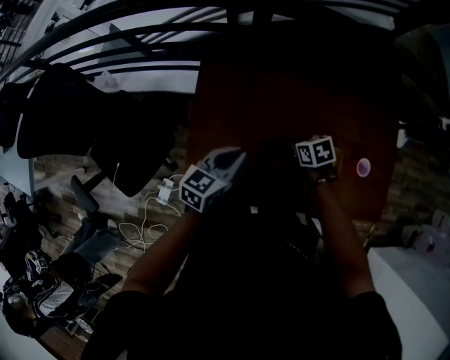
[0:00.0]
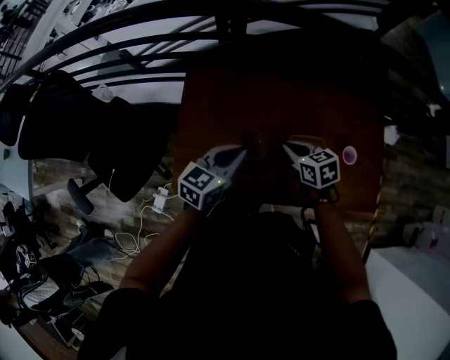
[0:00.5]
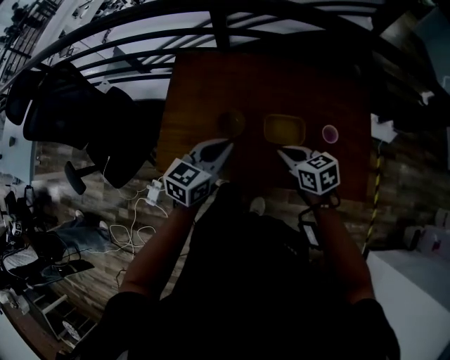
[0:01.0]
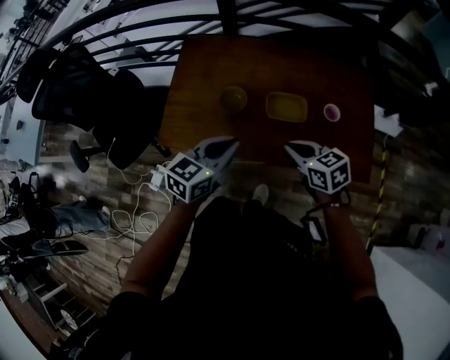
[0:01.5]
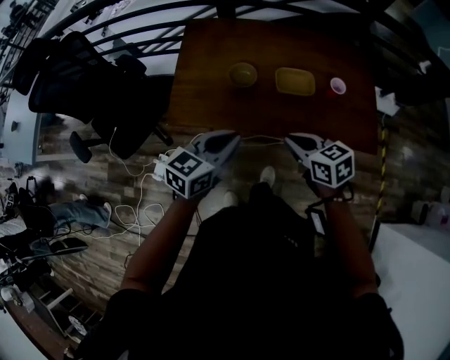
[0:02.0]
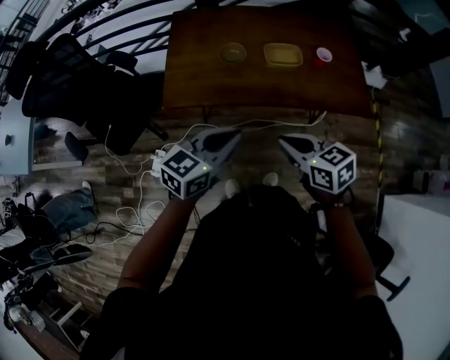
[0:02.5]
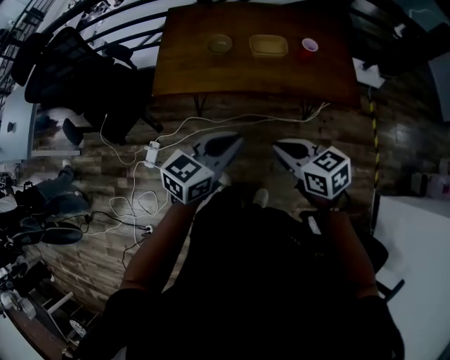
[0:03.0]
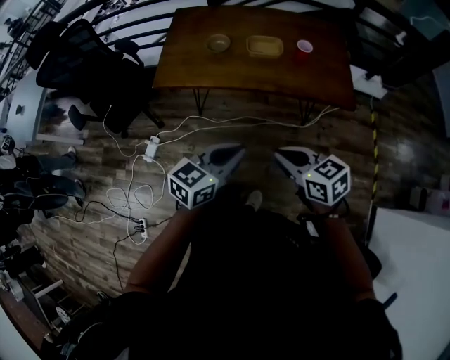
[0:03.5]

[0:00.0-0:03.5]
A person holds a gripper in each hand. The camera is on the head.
0:00.0 to 0:02.0: The right gripper travels backward and upward by some 40 cm, and turns by approximately 30 degrees, while the left gripper travels backward by roughly 30 cm.
0:02.0 to 0:03.5: The right gripper shifts some 25 cm backward, while the left gripper is displaced backward and to the right by roughly 30 cm.

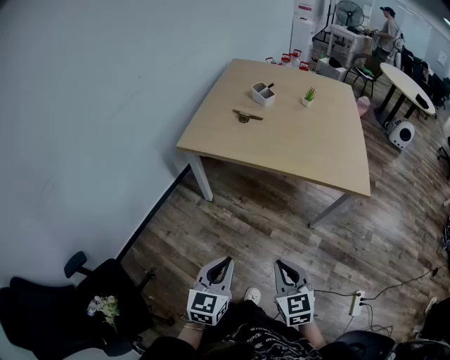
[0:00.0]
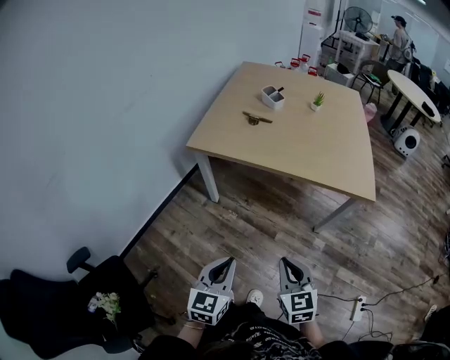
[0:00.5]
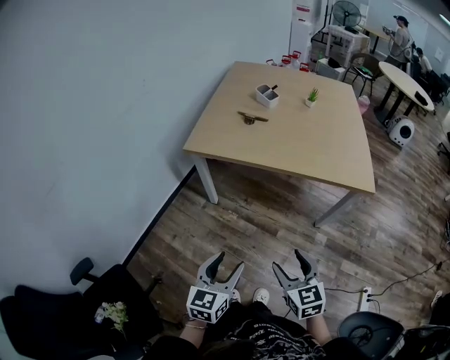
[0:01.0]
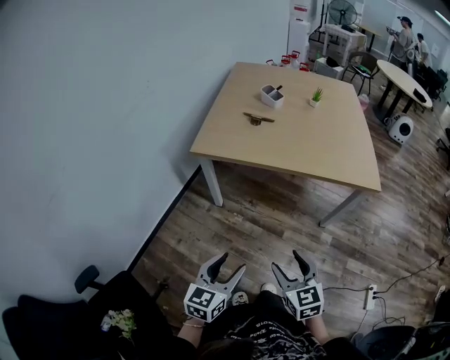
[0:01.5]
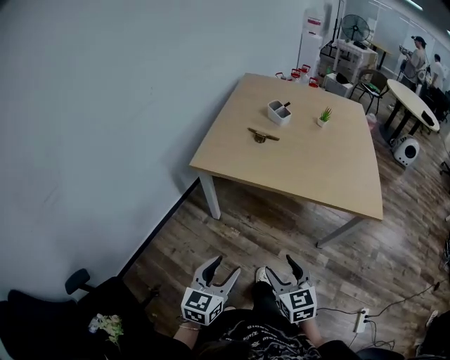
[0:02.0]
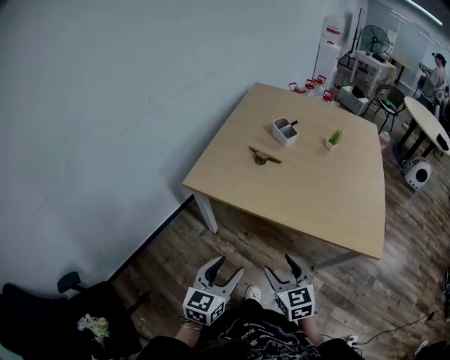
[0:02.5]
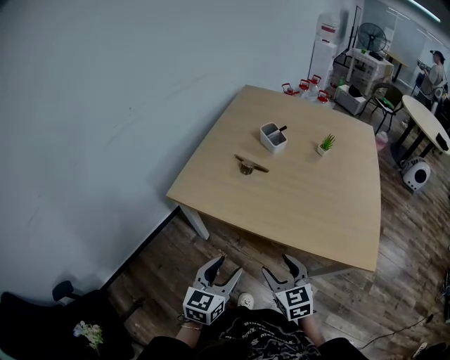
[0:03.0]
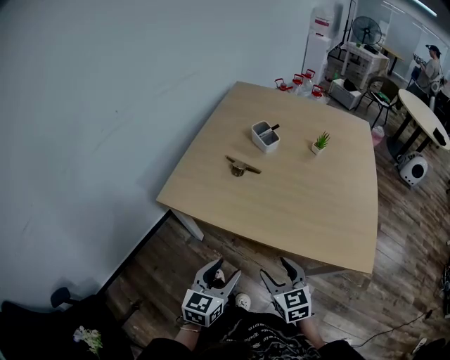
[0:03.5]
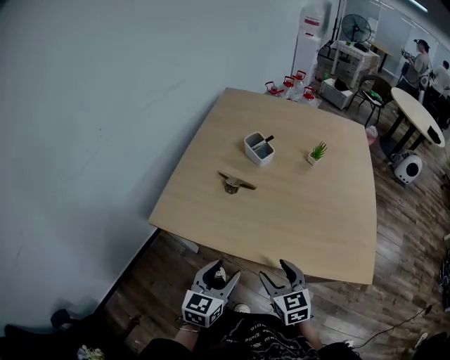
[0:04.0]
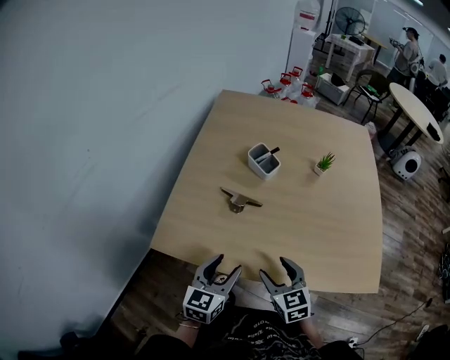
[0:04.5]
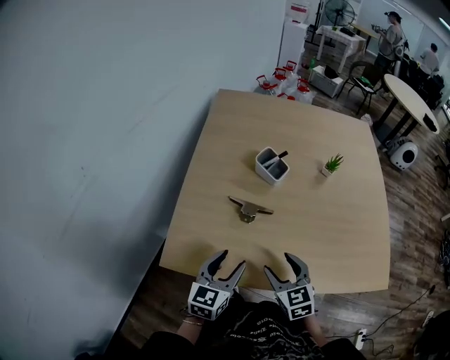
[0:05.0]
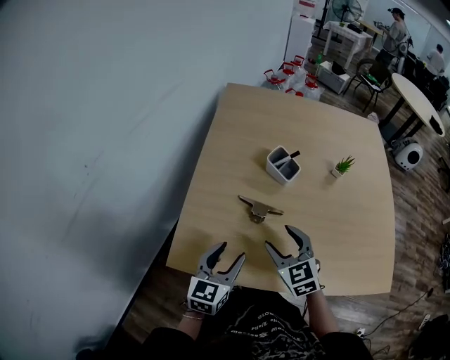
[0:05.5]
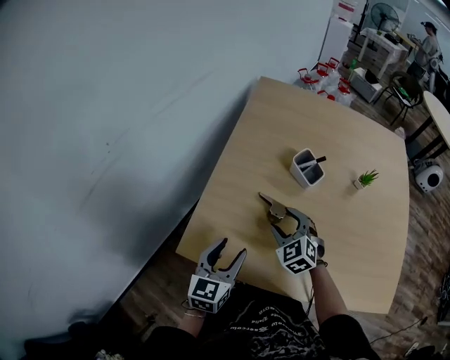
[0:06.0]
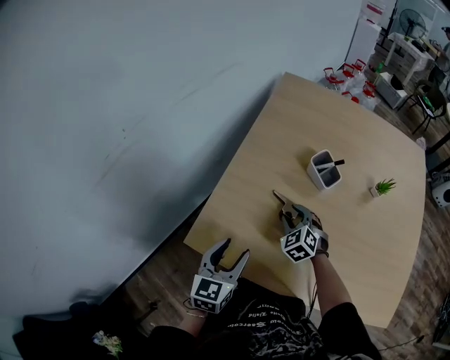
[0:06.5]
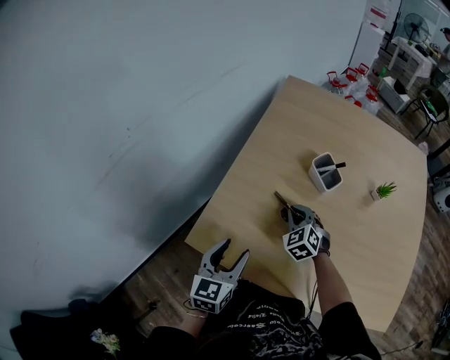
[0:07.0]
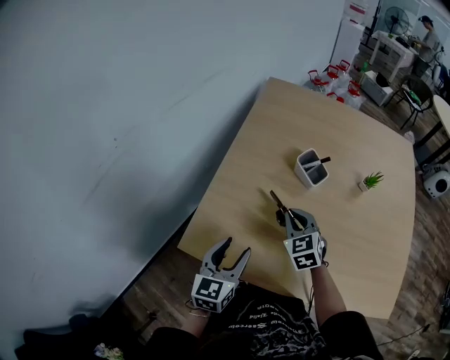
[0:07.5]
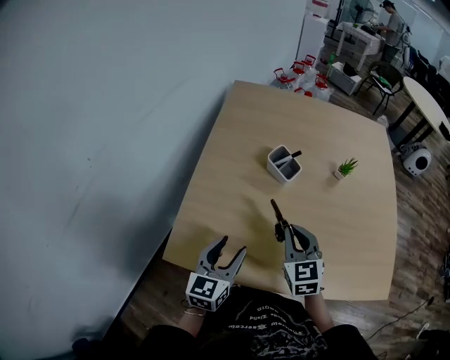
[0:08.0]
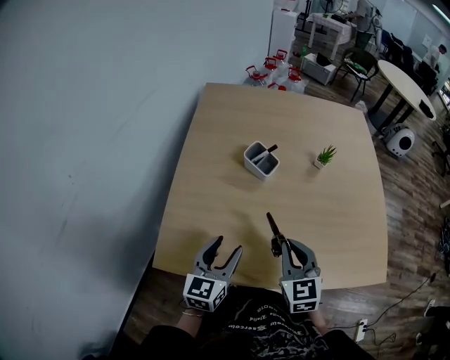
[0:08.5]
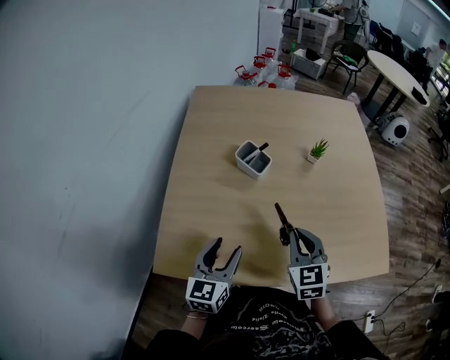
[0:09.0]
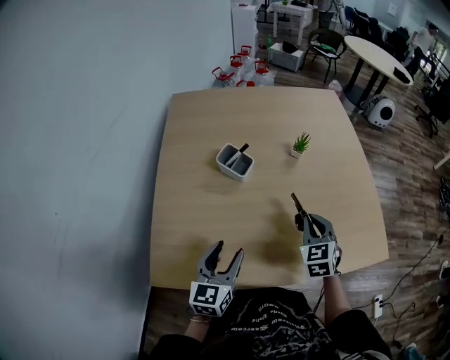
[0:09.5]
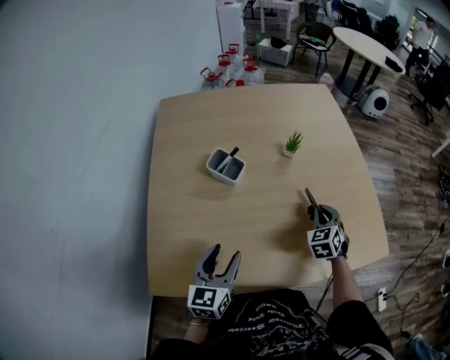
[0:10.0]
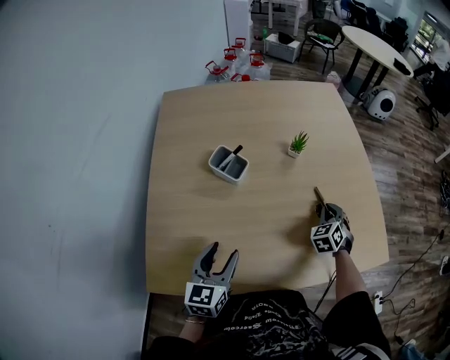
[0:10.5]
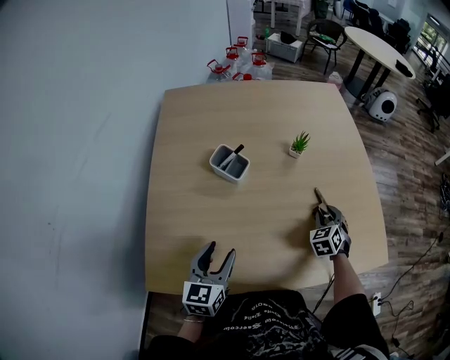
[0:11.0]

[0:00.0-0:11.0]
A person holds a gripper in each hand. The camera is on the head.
0:00.0 to 0:02.0: The right gripper goes roughly 15 cm forward and to the left, and opens. The left gripper heads to the left and forward, covering about 10 cm, and opens up.
0:02.0 to 0:03.5: The grippers both shift forward and to the right by roughly 25 cm.
0:03.5 to 0:05.5: The grippers both shift forward and to the left by some 35 cm.
0:05.5 to 0:07.5: The right gripper goes about 10 cm forward, and closes up.
0:07.5 to 0:09.0: The left gripper is displaced to the right by roughly 10 cm. Meanwhile the right gripper is displaced to the right and backward by approximately 20 cm, and turns by roughly 30 degrees.
0:09.0 to 0:11.0: The left gripper goes about 5 cm forward; the right gripper is displaced to the right, forward and downward by approximately 25 cm, turns by approximately 30 degrees, and opens its fingers.

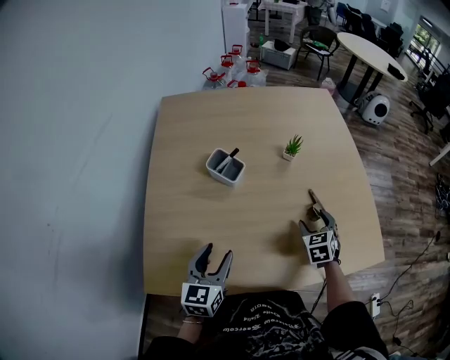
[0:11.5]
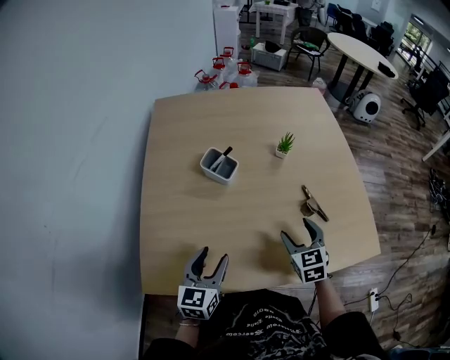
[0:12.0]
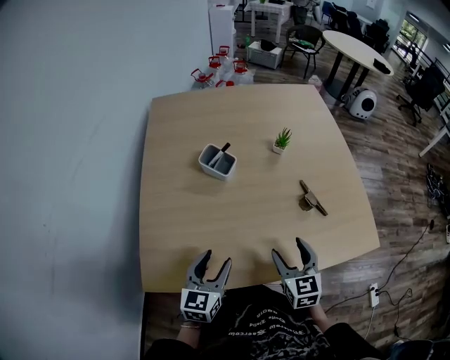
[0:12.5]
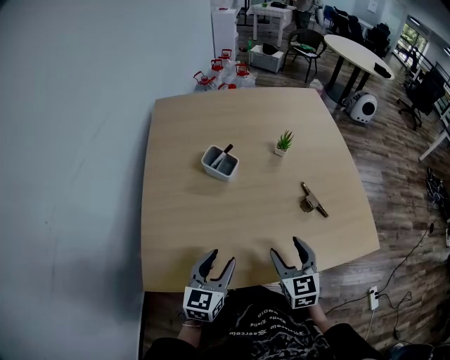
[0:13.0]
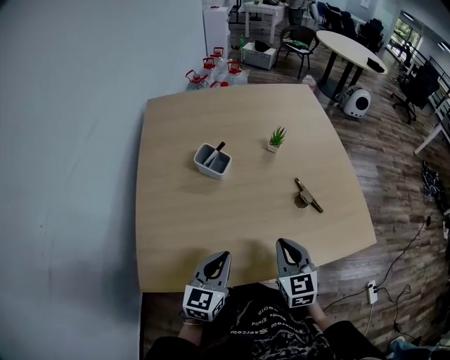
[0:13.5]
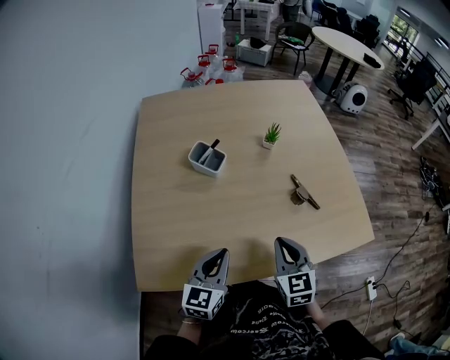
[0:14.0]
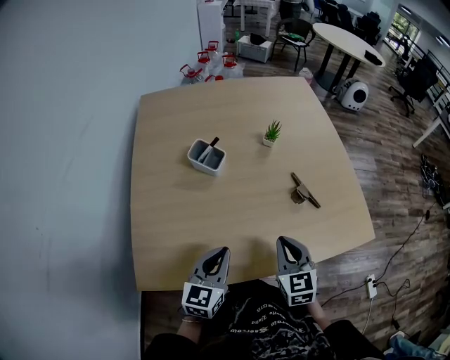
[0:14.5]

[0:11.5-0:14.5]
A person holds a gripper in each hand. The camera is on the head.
0:11.5 to 0:13.0: The right gripper heads backward, to the left and upward, covering about 20 cm, and changes its angle by about 20 degrees.
0:13.0 to 0:14.5: The right gripper closes. Meanwhile the left gripper closes up.

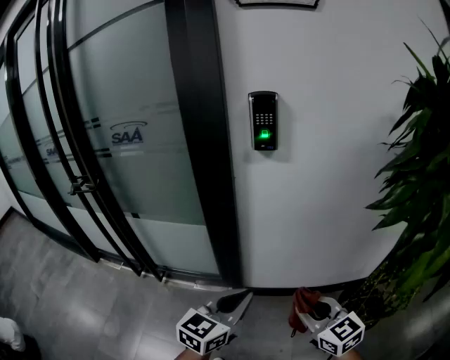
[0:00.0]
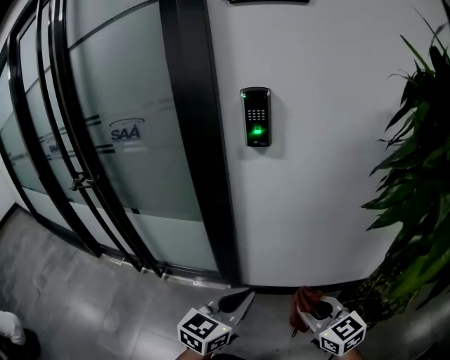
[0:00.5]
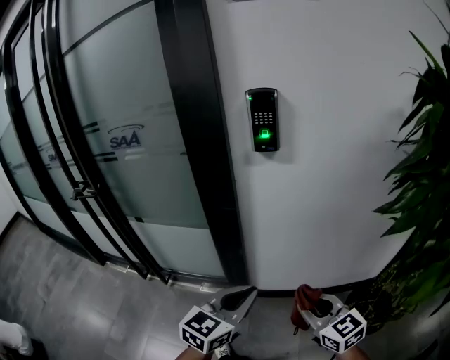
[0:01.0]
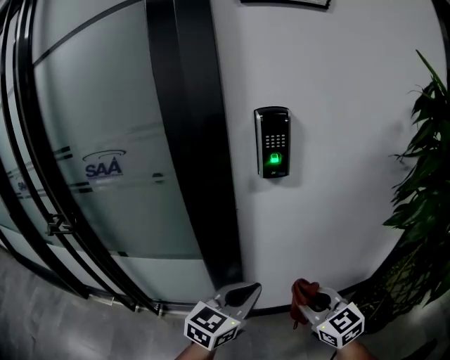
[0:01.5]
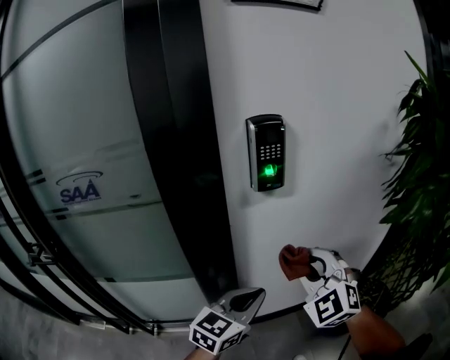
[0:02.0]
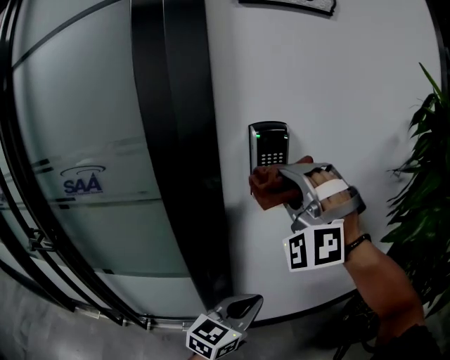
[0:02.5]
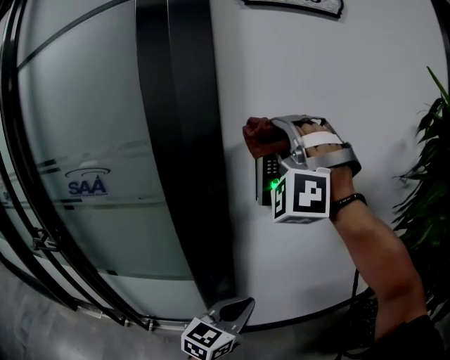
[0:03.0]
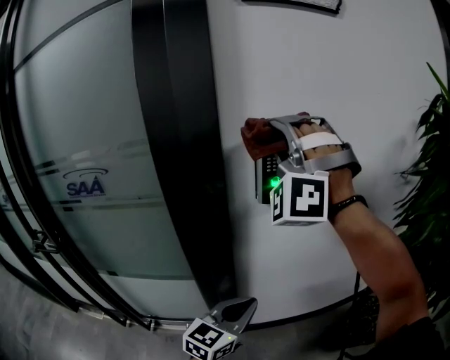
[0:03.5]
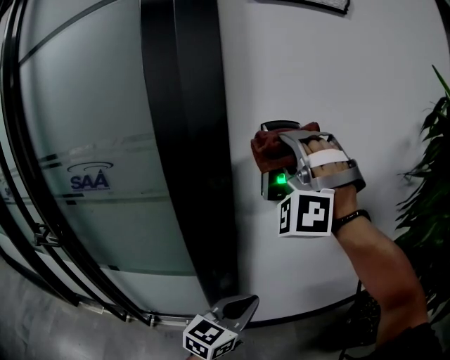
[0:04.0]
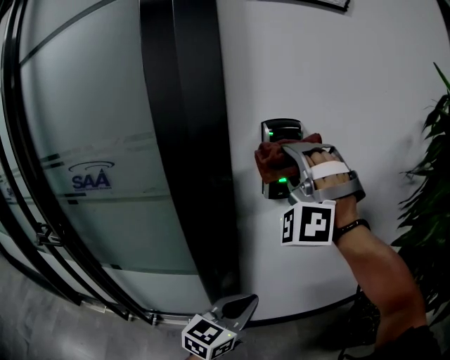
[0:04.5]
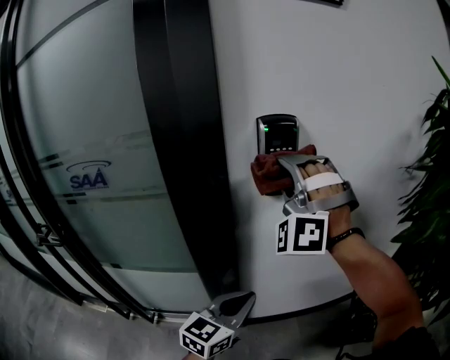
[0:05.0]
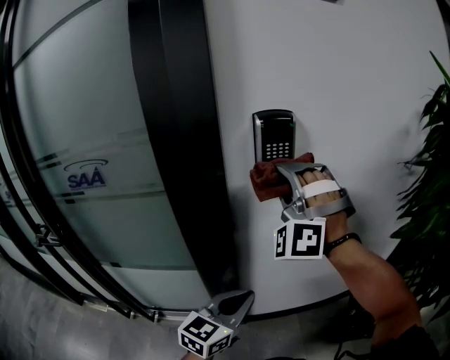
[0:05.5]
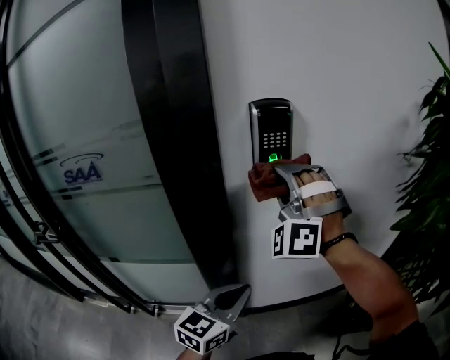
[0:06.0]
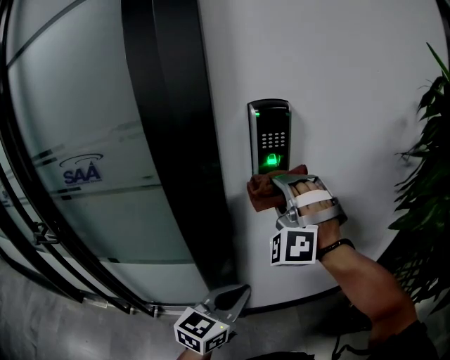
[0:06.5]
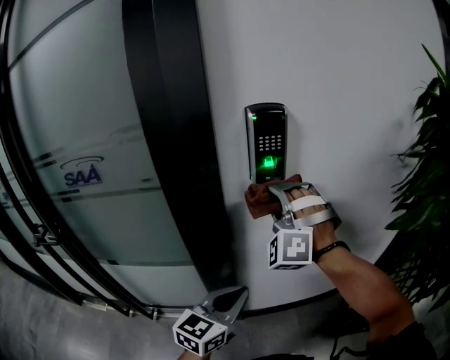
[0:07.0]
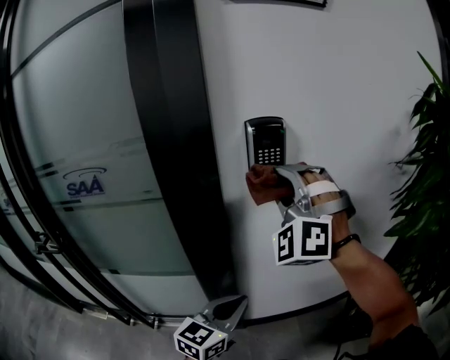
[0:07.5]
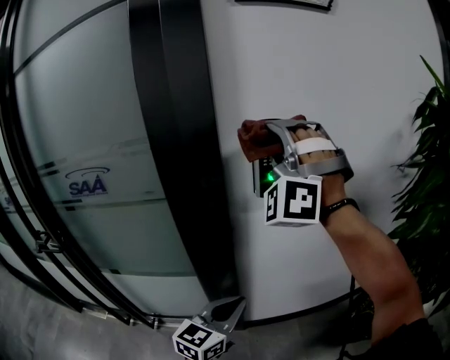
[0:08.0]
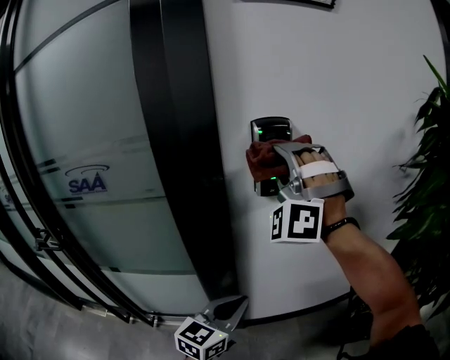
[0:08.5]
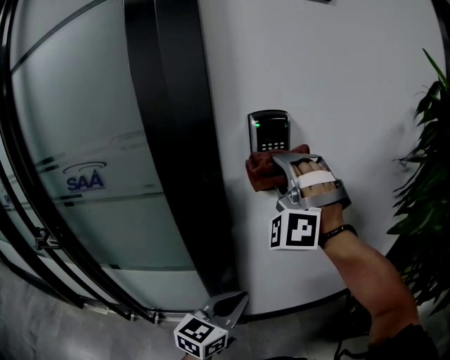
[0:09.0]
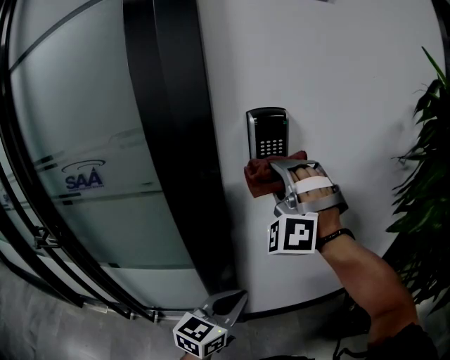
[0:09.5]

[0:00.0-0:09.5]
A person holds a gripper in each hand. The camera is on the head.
0:00.0 to 0:02.0: The left gripper ends up about 20 cm from where it was, and rotates approximately 20 degrees, while the right gripper changes place by roughly 30 cm, and rolls counterclockwise, seen from behind, by some 40 degrees.
0:02.0 to 0:04.0: The right gripper goes roughly 25 cm upward and forward, and twists roughly 40 degrees counterclockwise, seen from behind.
0:04.0 to 0:05.5: The right gripper is displaced downward by roughly 10 cm.
0:05.5 to 0:07.5: The right gripper travels downward and back again, some 10 cm each way.
0:07.5 to 0:09.5: The right gripper moves about 10 cm upward and comes back.
